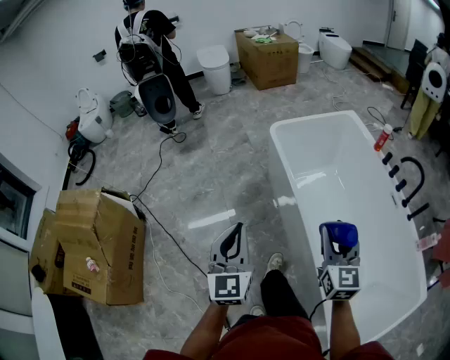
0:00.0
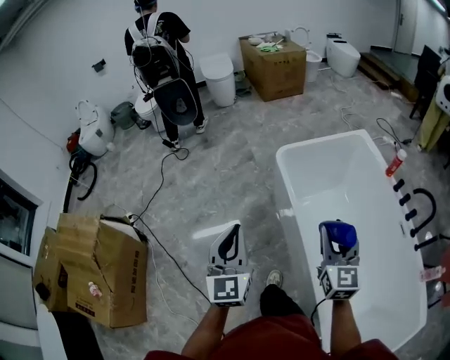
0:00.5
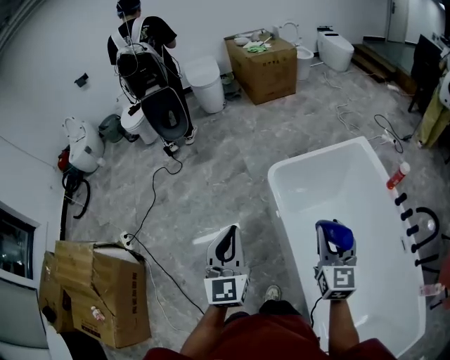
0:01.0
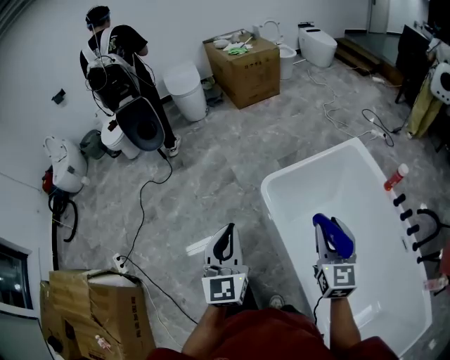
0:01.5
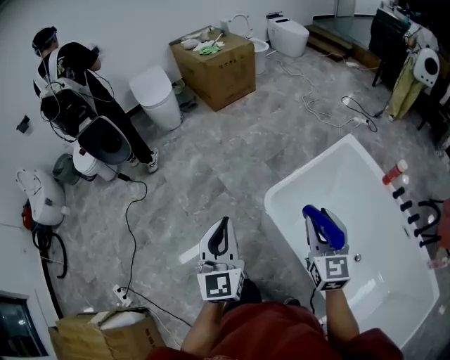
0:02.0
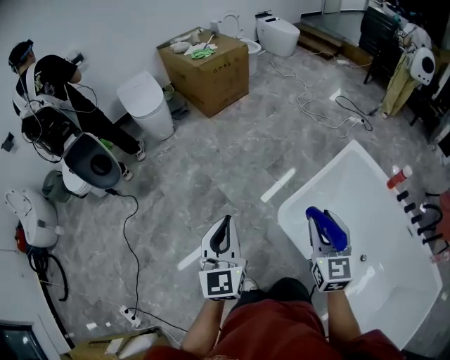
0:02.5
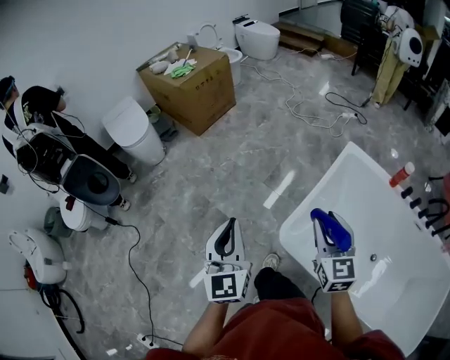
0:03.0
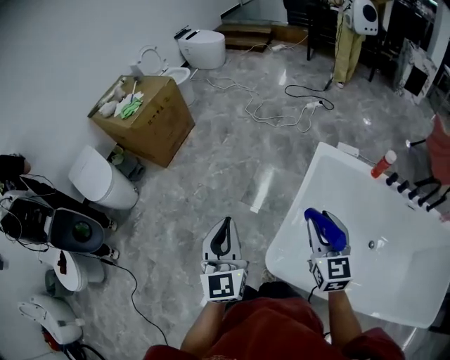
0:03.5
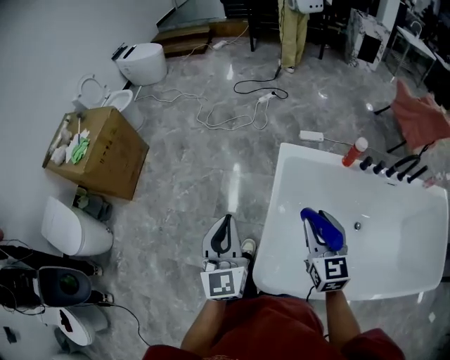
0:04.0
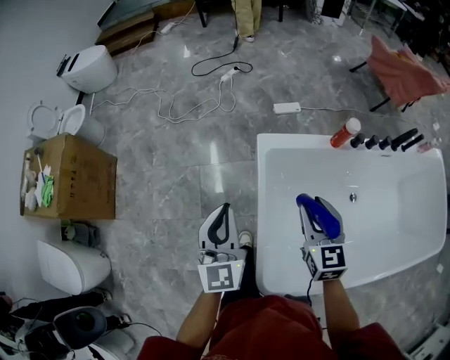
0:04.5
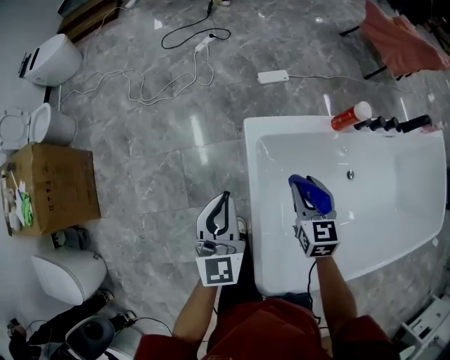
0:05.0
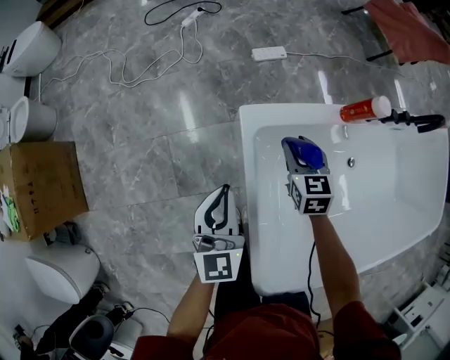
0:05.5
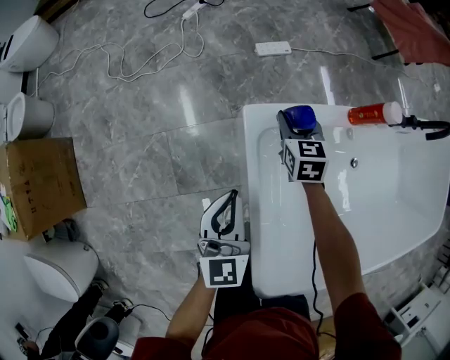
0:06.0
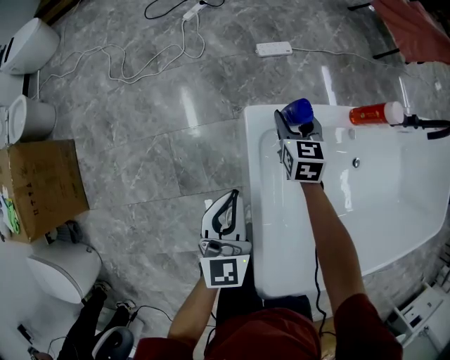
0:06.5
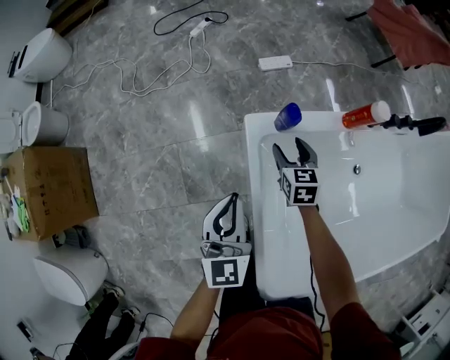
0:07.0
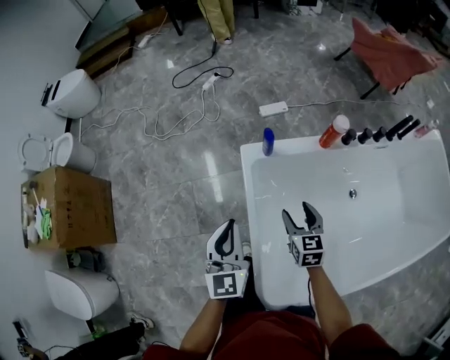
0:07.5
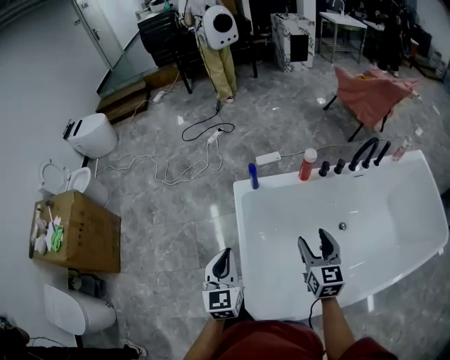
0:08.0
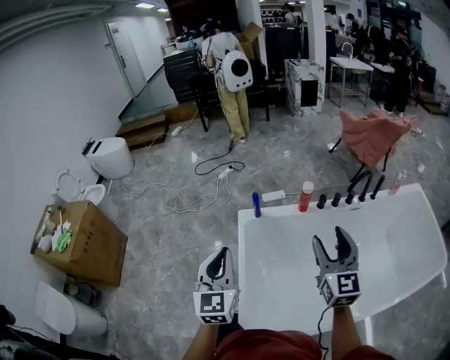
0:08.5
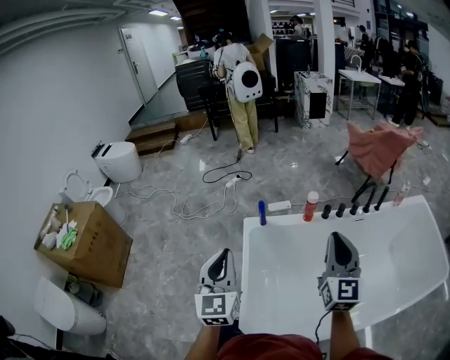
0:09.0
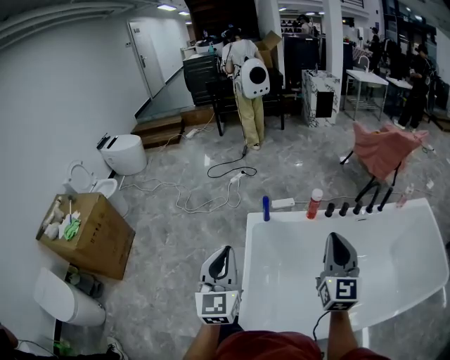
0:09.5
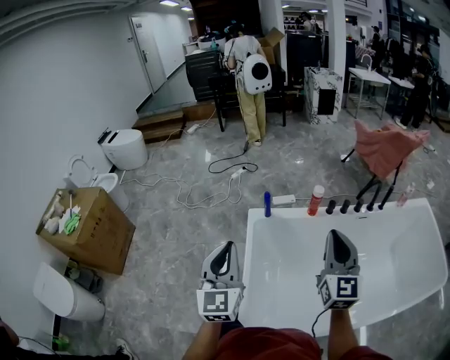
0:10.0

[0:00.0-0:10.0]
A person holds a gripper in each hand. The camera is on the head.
0:00.0 to 0:02.0: The two grippers travel together, forward, approximately 60 cm.
0:02.0 to 0:04.0: The left gripper shifts by some 50 cm, and swivels some 40 degrees. Meanwhile the right gripper moves about 35 cm, and rotates some 40 degrees.
0:04.0 to 0:06.0: Both grippers move forward and downward, about 50 cm. The right gripper swivels about 30 degrees; the left gripper turns by approximately 30 degrees.
0:06.0 to 0:08.0: The right gripper is displaced backward, upward and to the right by some 50 cm, swivels roughly 20 degrees, and opens up, while the left gripper goes roughly 30 cm backward and upward.
0:08.0 to 0:10.0: The left gripper is displaced upward and backward by some 20 cm; the right gripper travels upward by some 20 cm, changes its angle by some 30 degrees, and closes.

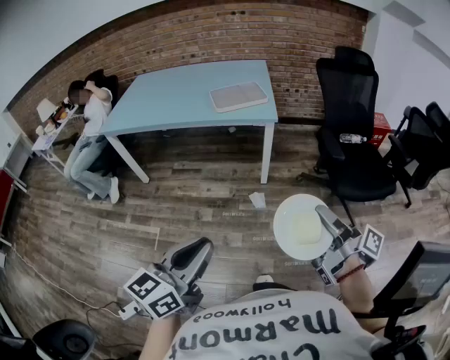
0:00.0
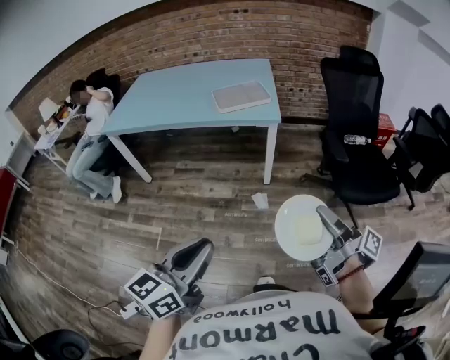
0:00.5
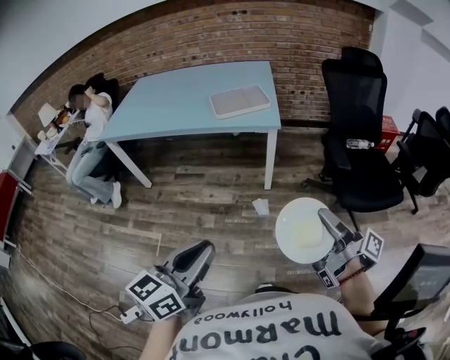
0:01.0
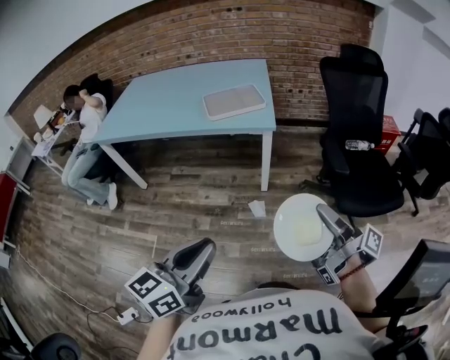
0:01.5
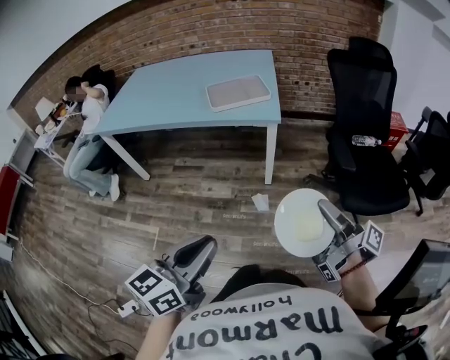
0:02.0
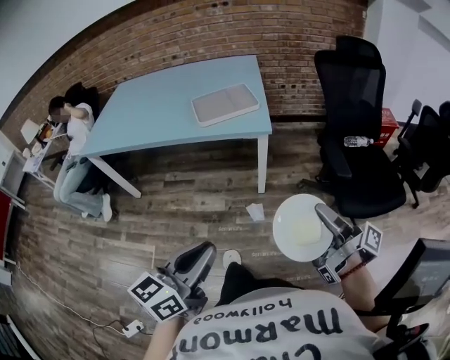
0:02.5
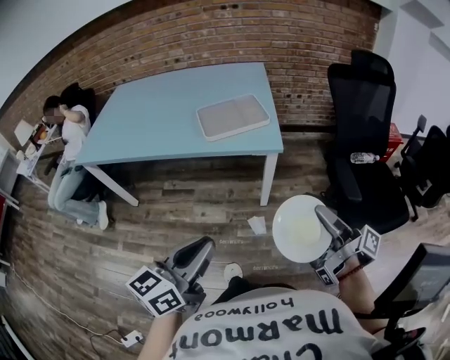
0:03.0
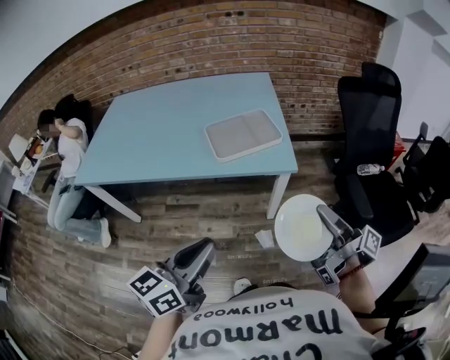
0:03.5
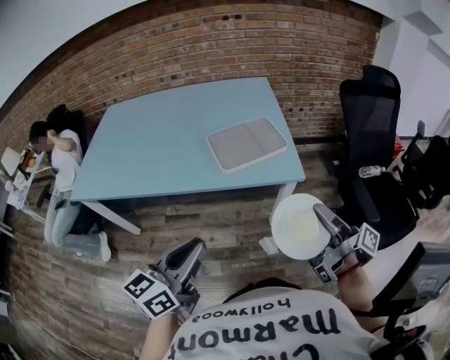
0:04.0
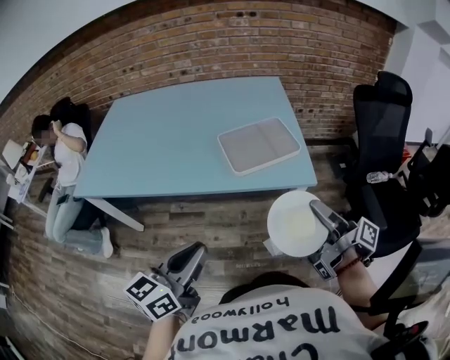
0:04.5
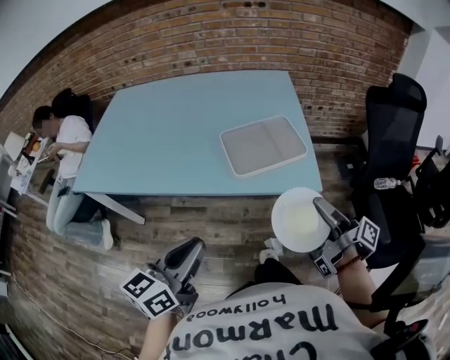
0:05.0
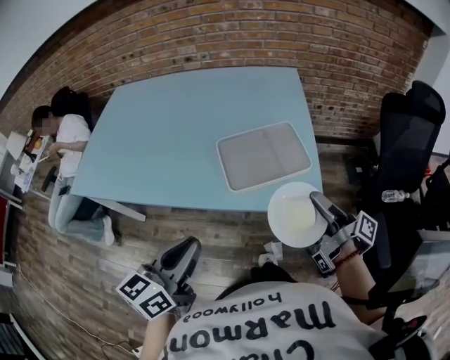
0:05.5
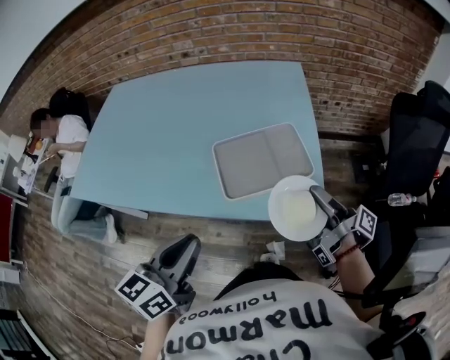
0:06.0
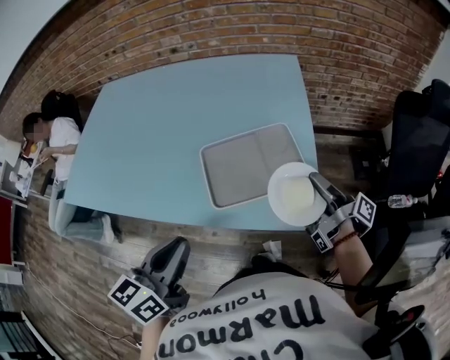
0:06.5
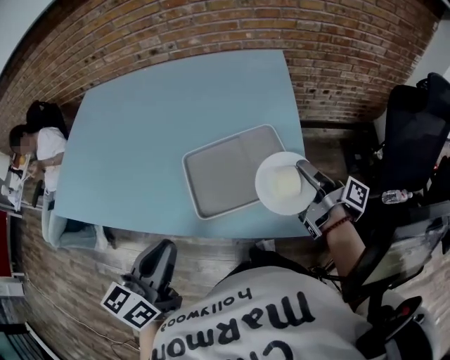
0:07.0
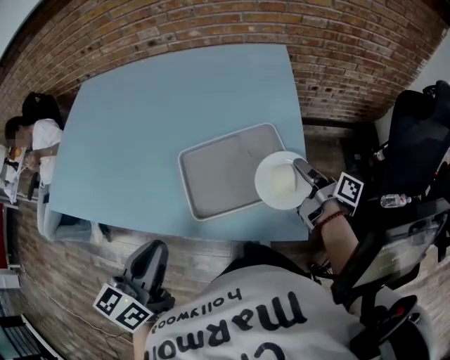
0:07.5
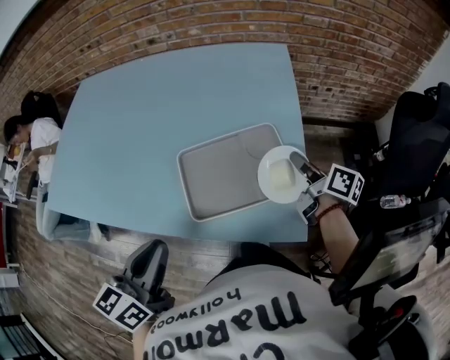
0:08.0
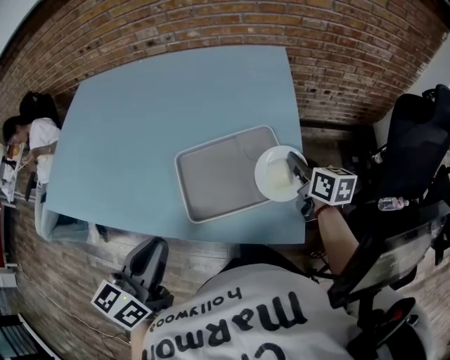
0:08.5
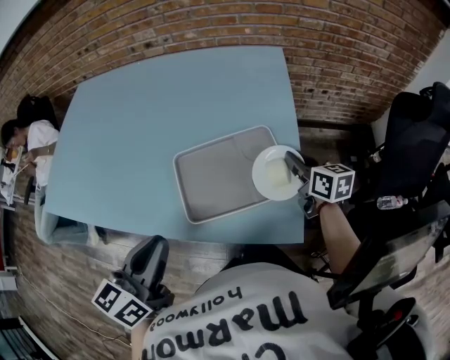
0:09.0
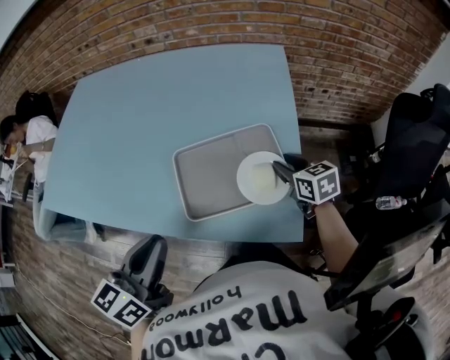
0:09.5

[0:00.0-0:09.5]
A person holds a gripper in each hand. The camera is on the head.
0:00.0 to 0:02.0: The left gripper travels forward and to the right by roughly 15 cm. The right gripper heads forward, covering about 15 cm.
0:02.0 to 0:04.0: The grippers both shift forward and to the left by some 35 cm.
0:04.0 to 0:05.5: Both grippers travel together forward, roughly 15 cm.
0:05.5 to 0:07.5: The left gripper shifts approximately 15 cm forward. The right gripper heads forward and downward, covering approximately 25 cm.
0:07.5 to 0:09.5: The right gripper moves roughly 5 cm, twists approximately 70 degrees counterclockwise, seen from behind, and opens up.

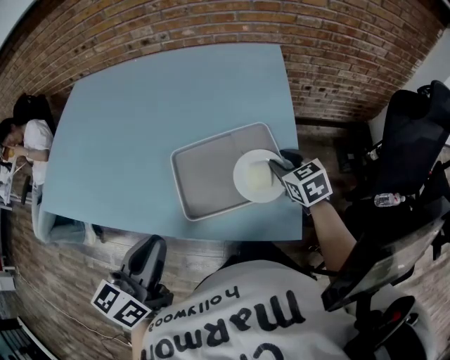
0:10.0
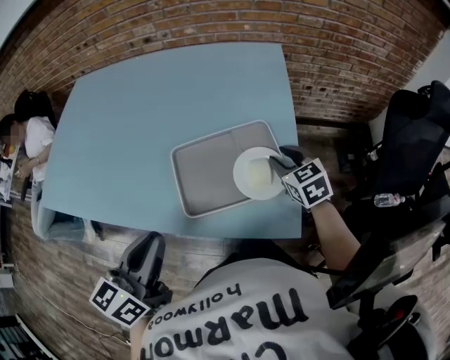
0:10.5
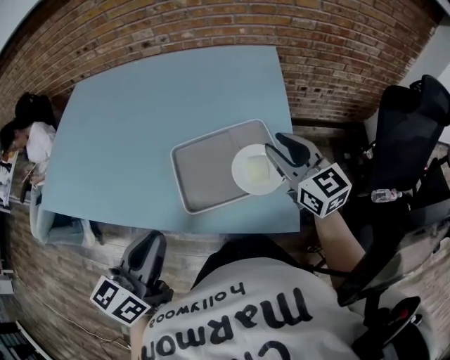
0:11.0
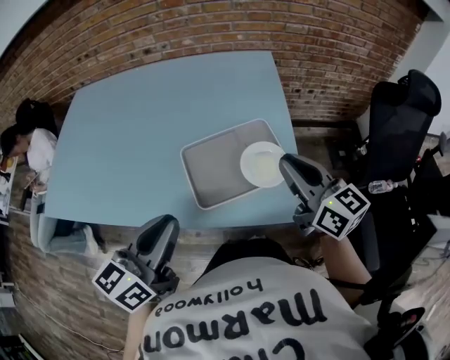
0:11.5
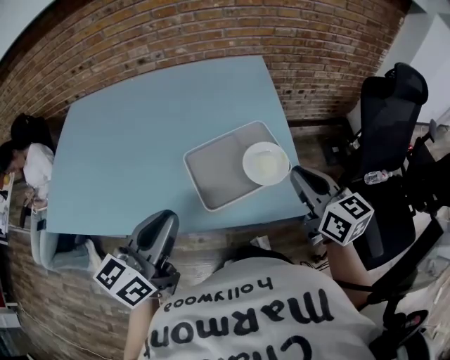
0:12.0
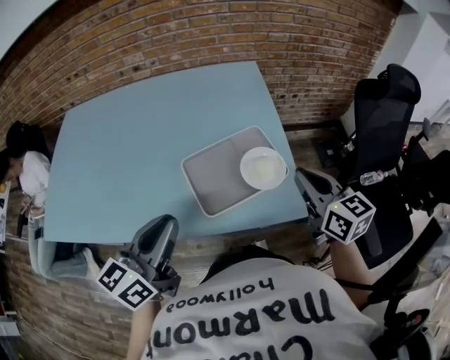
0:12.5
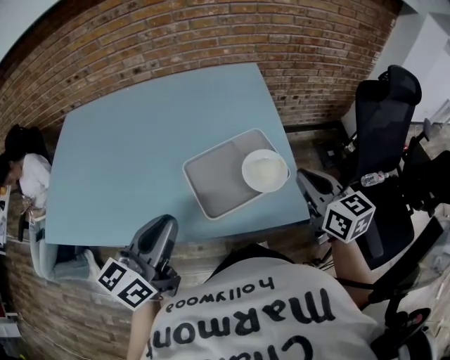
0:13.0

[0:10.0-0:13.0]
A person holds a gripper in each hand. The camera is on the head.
0:10.0 to 0:11.5: The right gripper goes approximately 20 cm upward and backward, tips its fingers upward by some 40 degrees, and closes its fingers.
0:11.5 to 0:13.0: The left gripper changes place by approximately 5 cm.

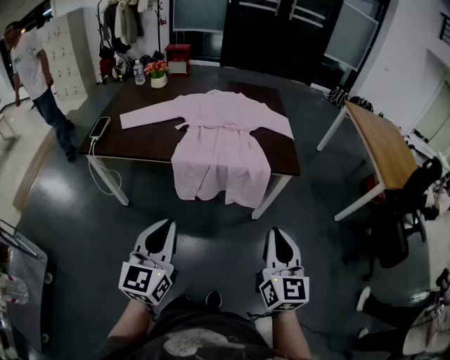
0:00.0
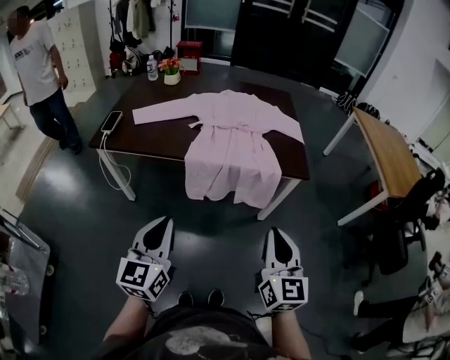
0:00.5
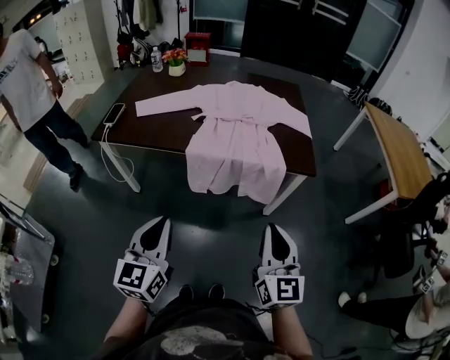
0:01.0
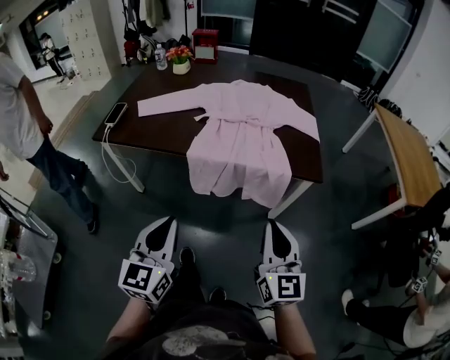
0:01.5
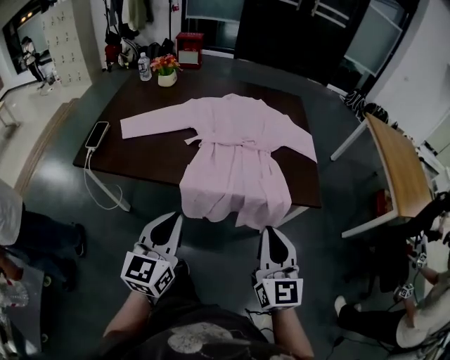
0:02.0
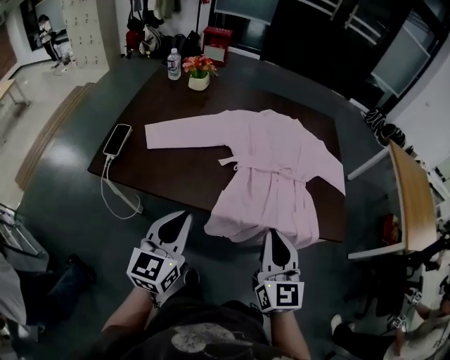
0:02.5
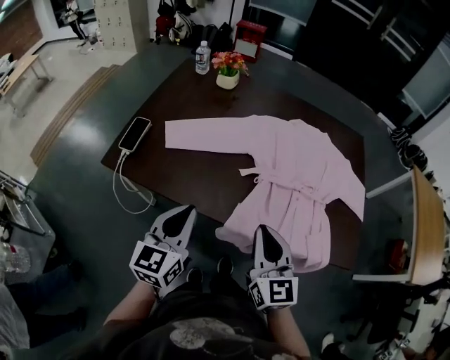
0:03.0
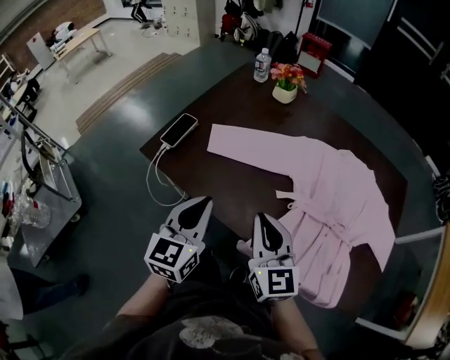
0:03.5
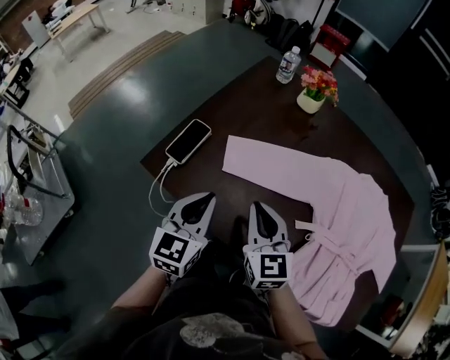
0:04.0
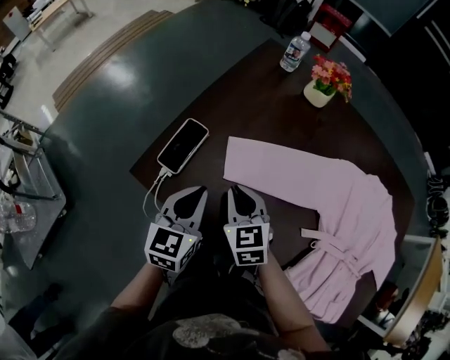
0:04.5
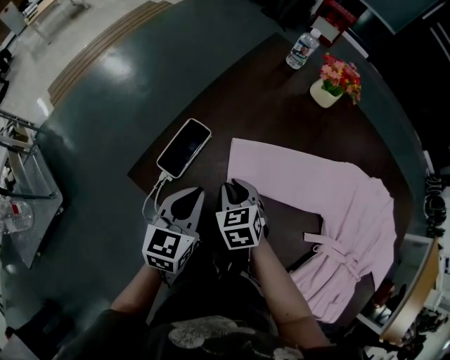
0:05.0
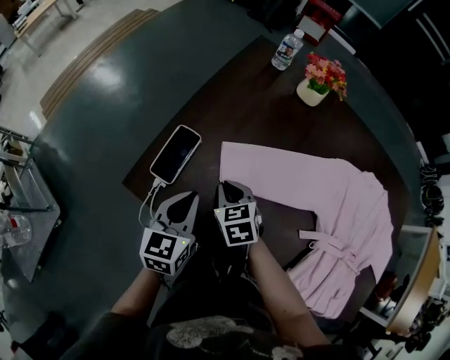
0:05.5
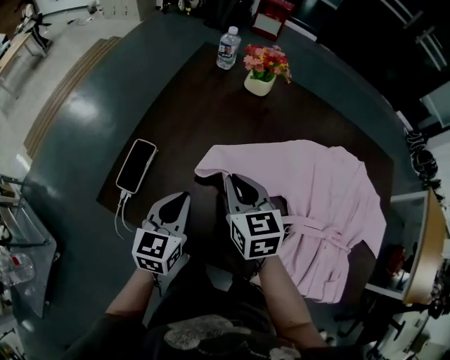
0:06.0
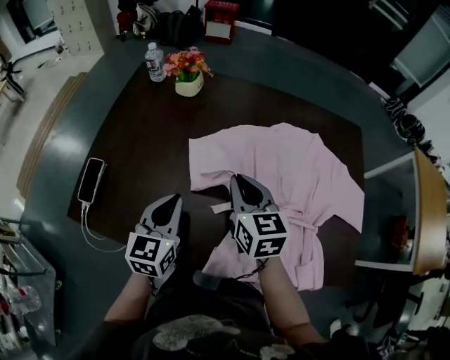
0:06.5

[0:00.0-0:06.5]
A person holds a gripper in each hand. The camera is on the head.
0:00.0 to 0:02.0: The left gripper goes roughly 20 cm forward; the right gripper travels forward and to the left by about 20 cm.
0:02.0 to 0:04.5: The pair of grippers is taken roughly 60 cm. The right gripper angles its fingers downward, by about 30 degrees, while the left gripper swivels roughly 30 degrees.
0:04.5 to 0:06.5: The grippers both shift to the right by approximately 30 cm. The right gripper turns by some 30 degrees.
